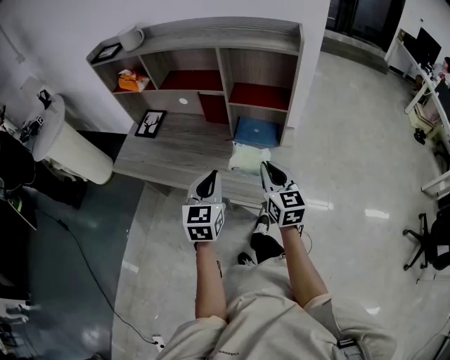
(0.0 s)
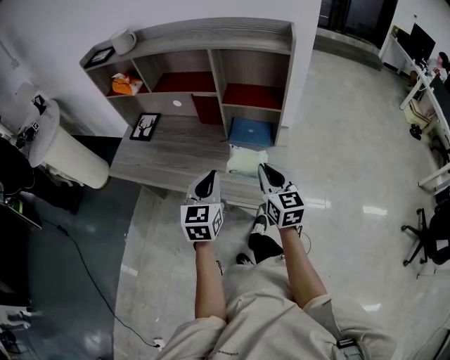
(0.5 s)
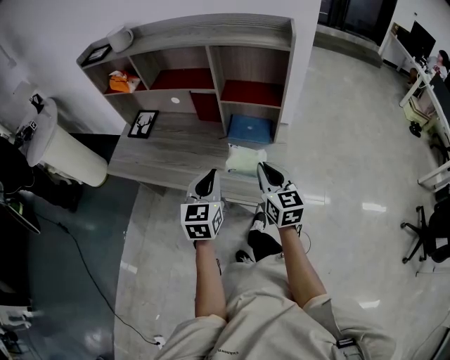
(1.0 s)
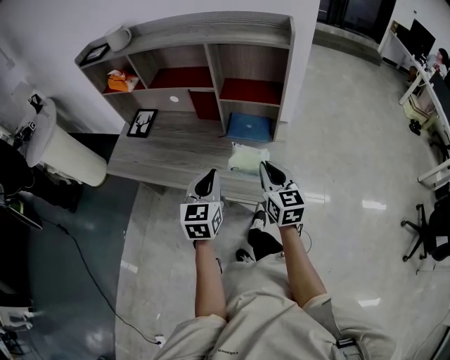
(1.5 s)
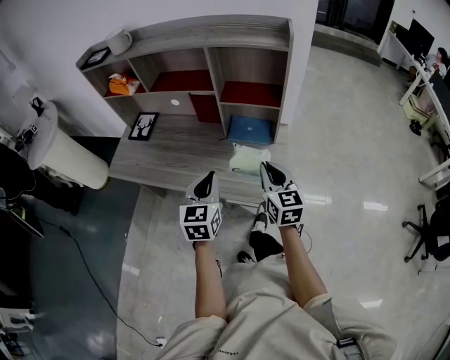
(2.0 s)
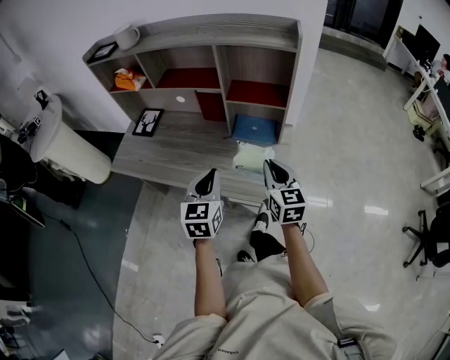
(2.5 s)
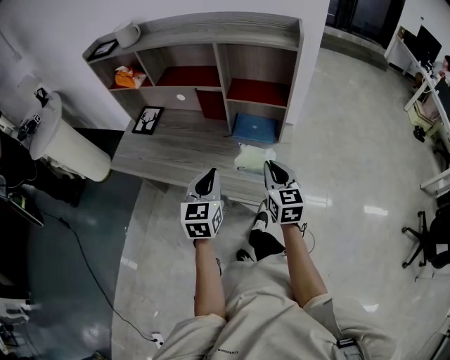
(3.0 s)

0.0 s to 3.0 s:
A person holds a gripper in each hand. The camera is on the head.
0.0 to 3.0 s: The grippers move only a little.

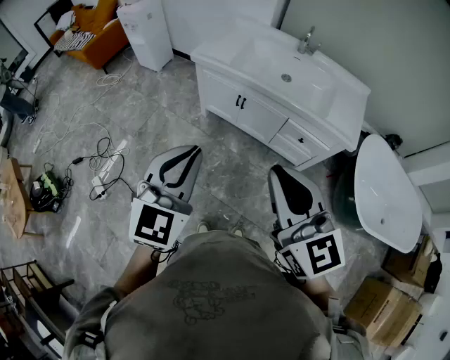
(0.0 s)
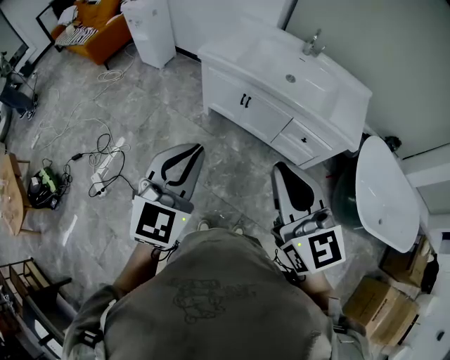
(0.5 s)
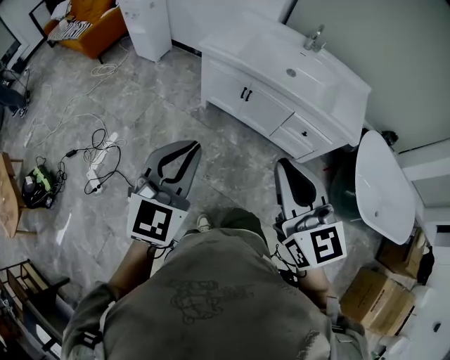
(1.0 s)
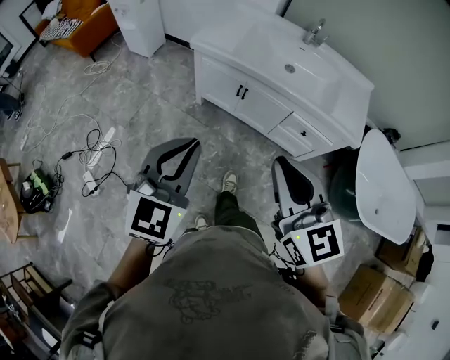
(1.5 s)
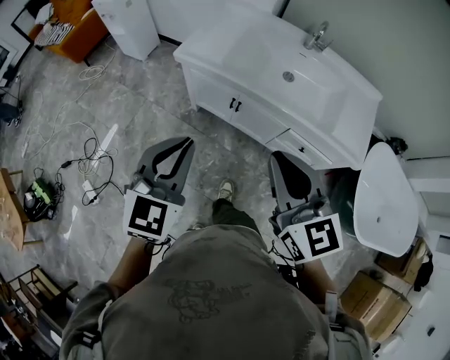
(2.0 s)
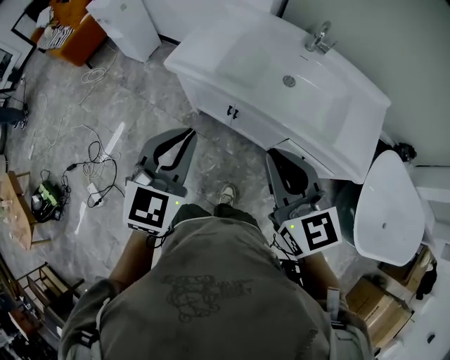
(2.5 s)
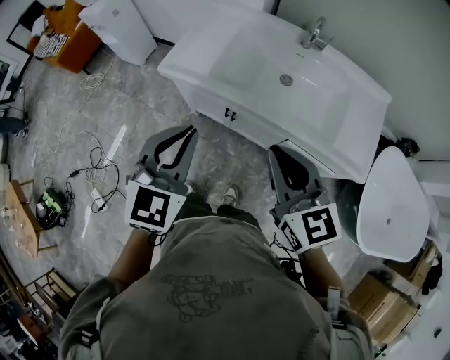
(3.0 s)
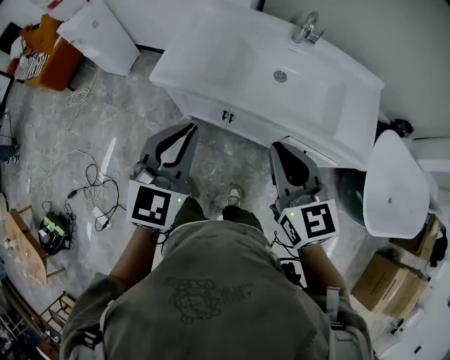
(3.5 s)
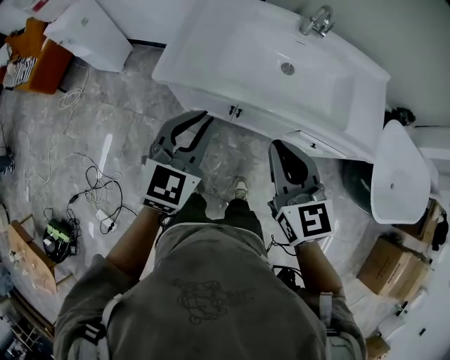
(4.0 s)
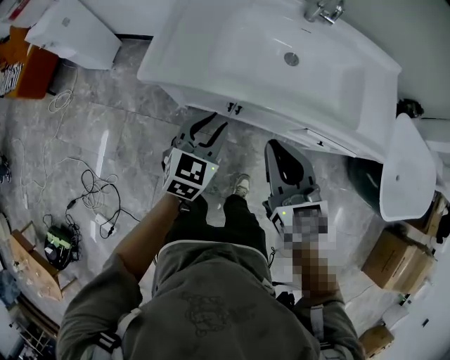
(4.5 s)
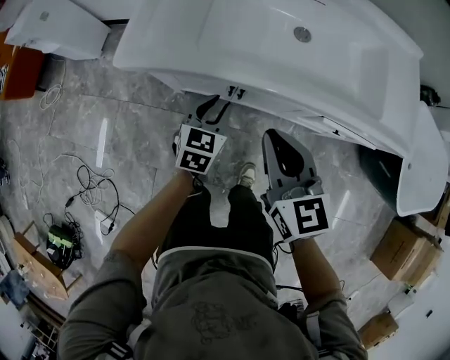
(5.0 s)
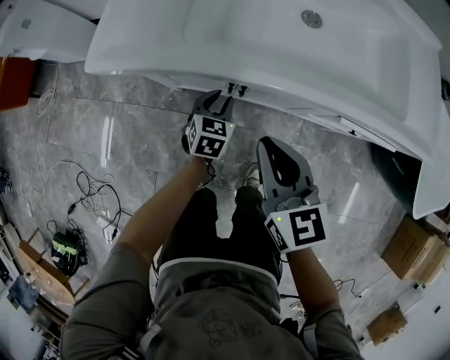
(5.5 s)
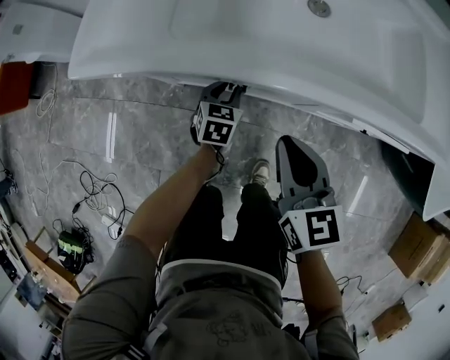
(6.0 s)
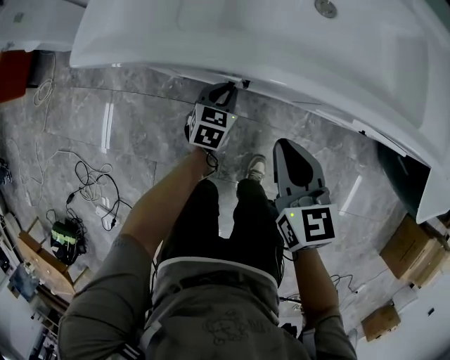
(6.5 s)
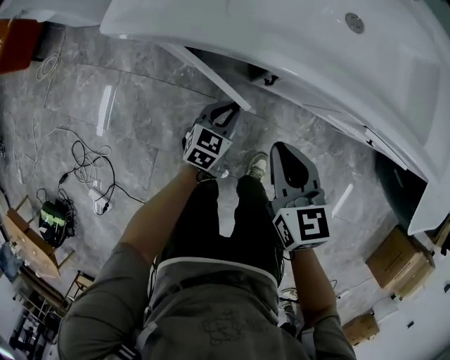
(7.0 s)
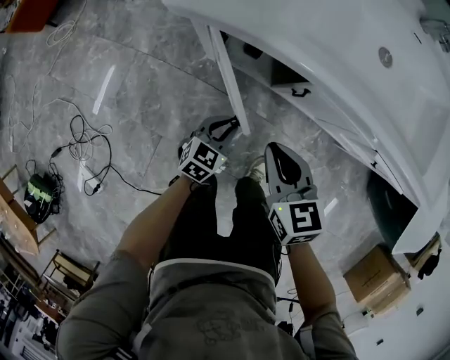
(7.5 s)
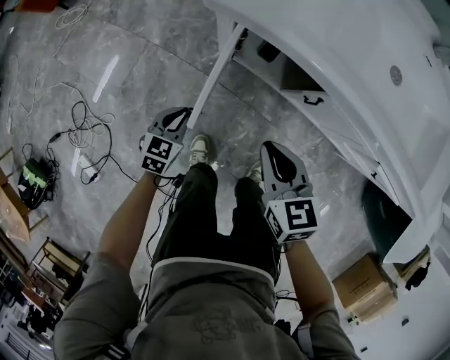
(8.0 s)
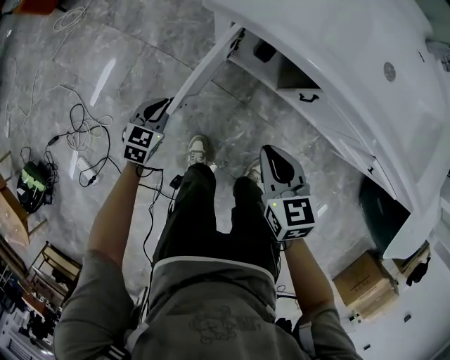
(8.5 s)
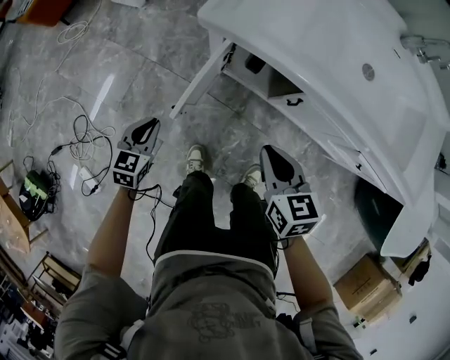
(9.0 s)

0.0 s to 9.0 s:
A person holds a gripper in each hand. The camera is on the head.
0.0 to 2.0 s: The grippers both shift forward by about 20 cm.
2.0 to 4.5 s: Both grippers travel together forward and downward, some 30 cm. The right gripper rotates approximately 20 degrees, while the left gripper swivels some 20 degrees, and opens its fingers.
4.5 to 7.0 s: The two grippers go some 30 cm downward.
7.0 to 9.0 s: The left gripper goes approximately 30 cm to the left, and swivels some 20 degrees, while the right gripper travels to the left by some 10 cm.

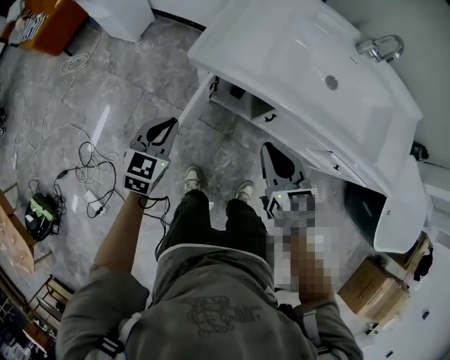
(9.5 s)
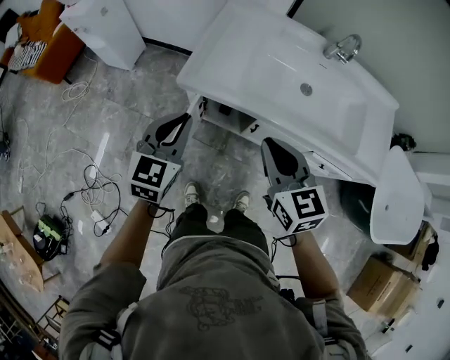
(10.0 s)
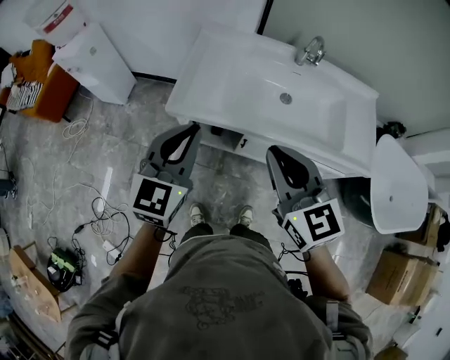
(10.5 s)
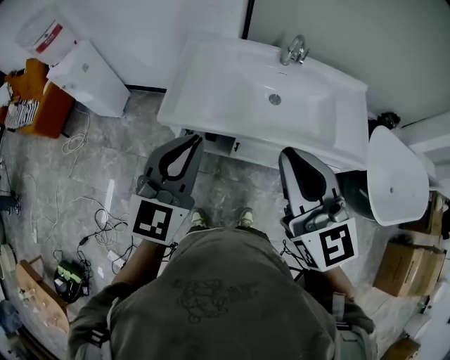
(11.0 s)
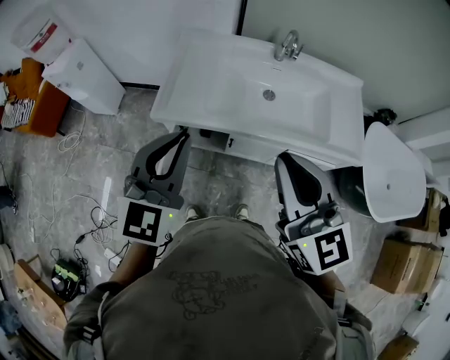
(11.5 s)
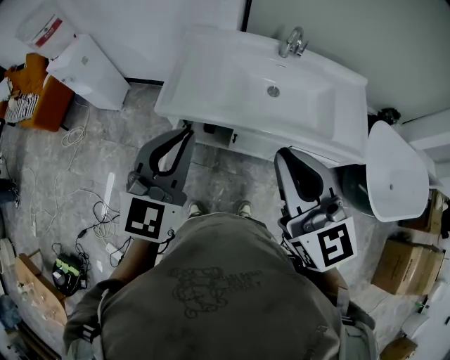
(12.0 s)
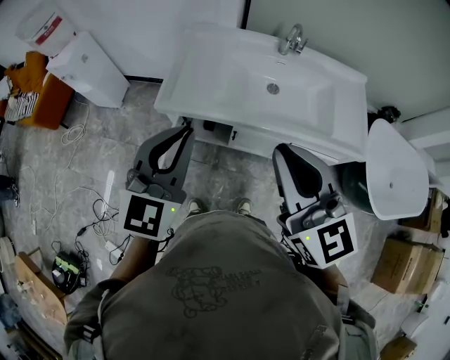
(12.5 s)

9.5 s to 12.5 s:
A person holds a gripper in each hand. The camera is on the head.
9.5 to 11.0 s: The right gripper shifts about 35 cm upward, and swivels some 30 degrees, while the left gripper goes roughly 40 cm upward and to the right, and changes its angle by roughly 30 degrees.
11.0 to 12.5 s: The grippers move only a little.

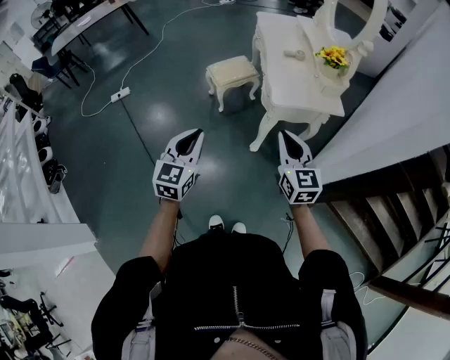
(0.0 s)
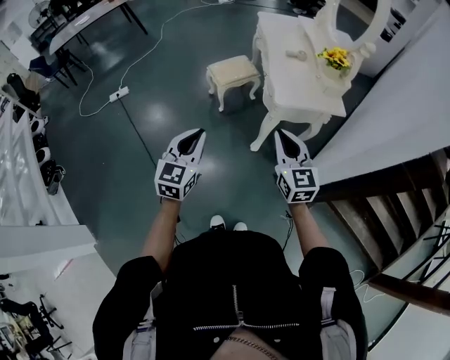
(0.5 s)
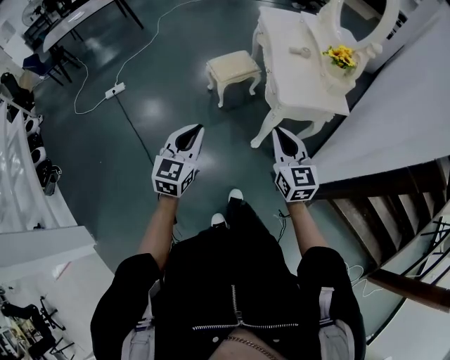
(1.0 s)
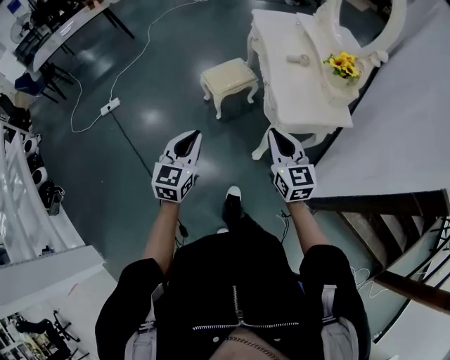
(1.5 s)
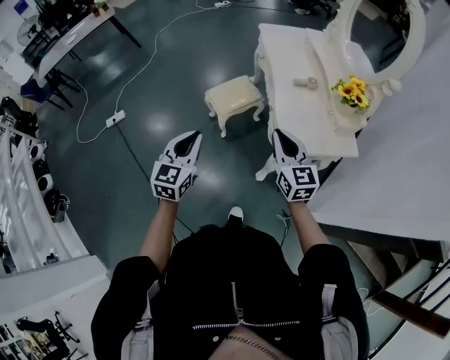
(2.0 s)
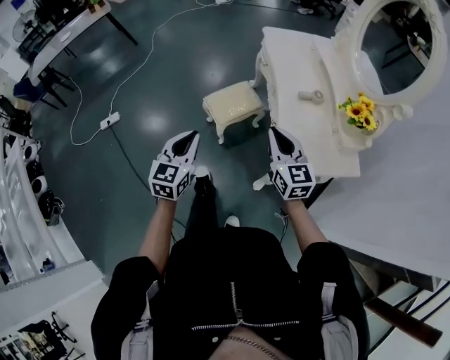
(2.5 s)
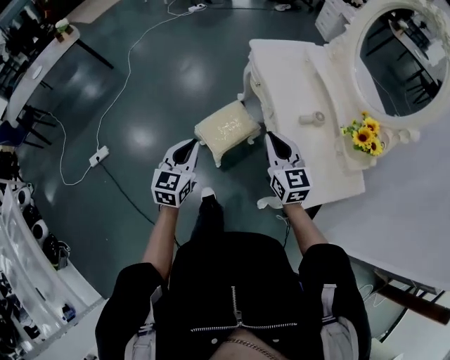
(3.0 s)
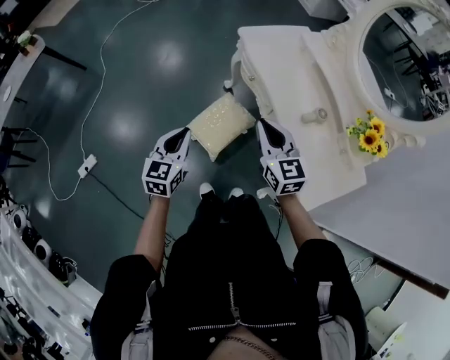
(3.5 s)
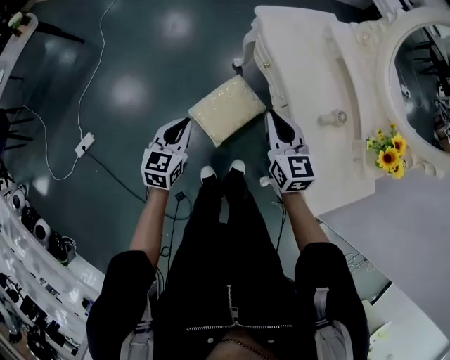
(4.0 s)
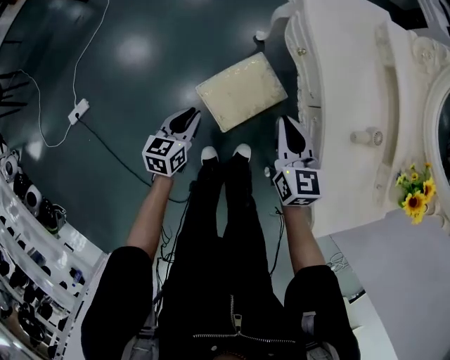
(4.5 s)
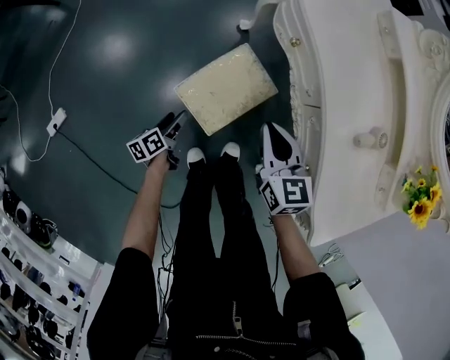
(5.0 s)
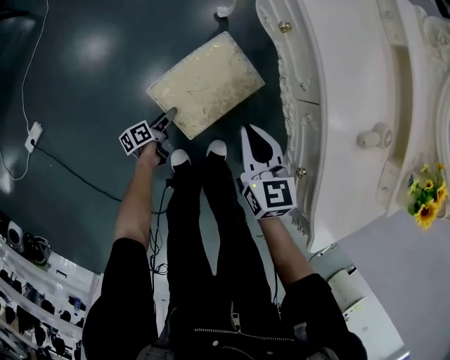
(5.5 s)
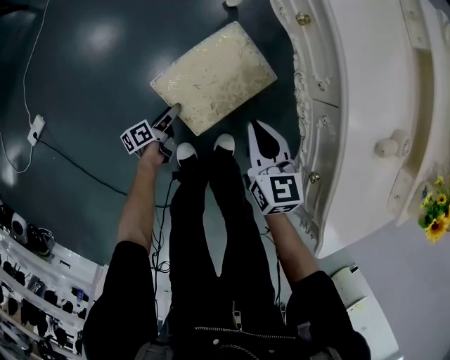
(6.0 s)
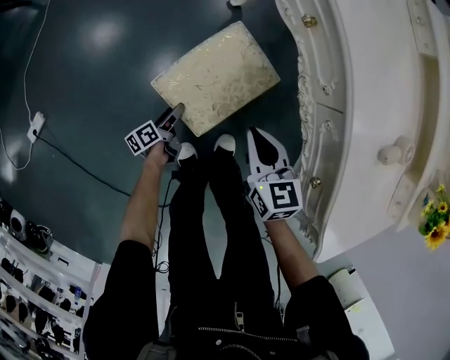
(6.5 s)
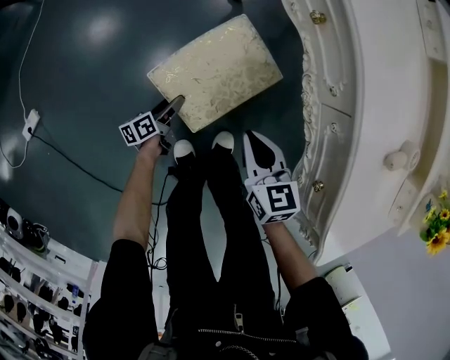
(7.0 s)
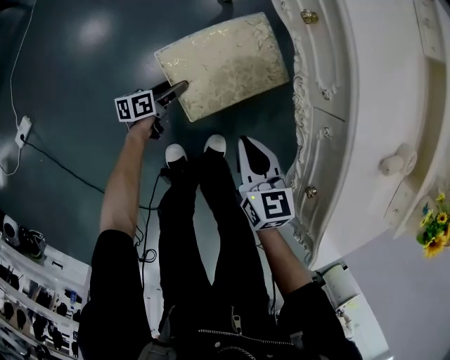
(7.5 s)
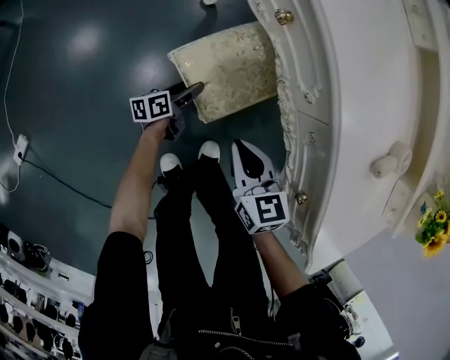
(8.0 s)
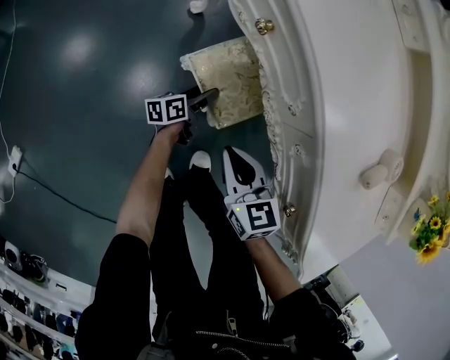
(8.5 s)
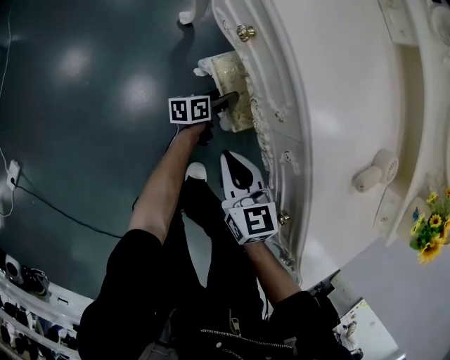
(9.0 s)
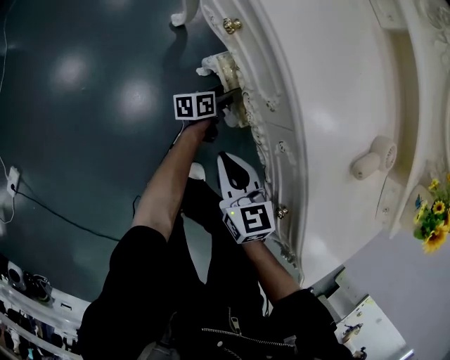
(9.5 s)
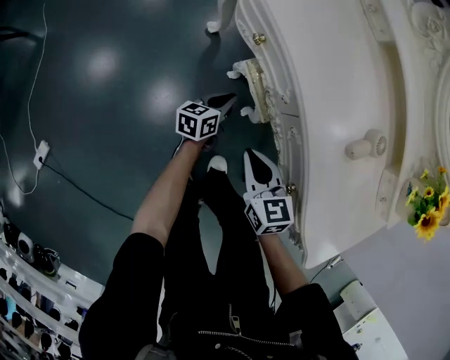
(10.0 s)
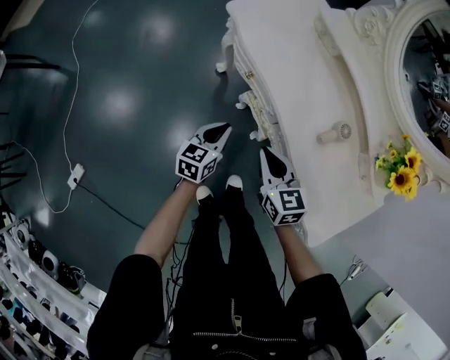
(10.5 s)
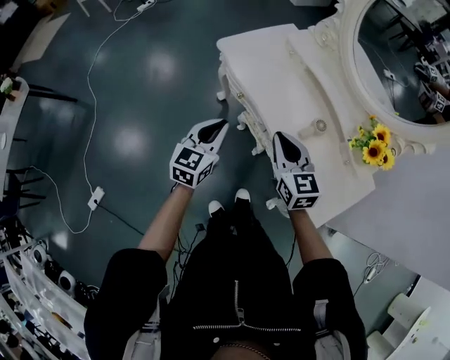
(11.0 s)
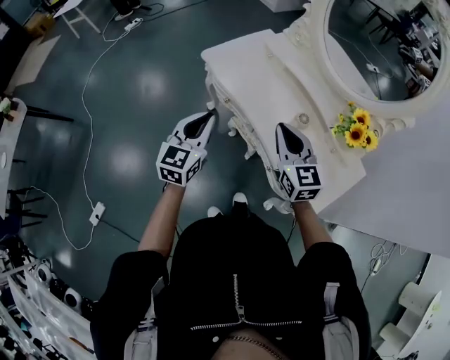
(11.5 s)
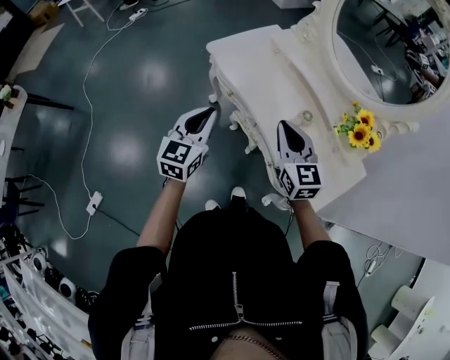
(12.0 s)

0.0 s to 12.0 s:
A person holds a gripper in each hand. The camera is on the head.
0.0 to 2.0 s: Both grippers move forward, about 25 cm.
2.0 to 4.0 s: The pair of grippers is taken forward, approximately 50 cm.
4.0 to 6.0 s: The right gripper moves downward, some 35 cm. Meanwhile the left gripper goes about 50 cm downward, rolls counterclockwise, seen from behind, by some 70 degrees, and opens up.
6.0 to 8.0 s: The left gripper travels forward and to the right by some 20 cm, and rotates approximately 30 degrees. The right gripper heads downward, covering about 5 cm.
8.0 to 10.0 s: The left gripper is displaced upward and to the right by approximately 15 cm, changes its angle by some 30 degrees, and closes; the right gripper shifts about 5 cm upward.
10.0 to 12.0 s: Both grippers travel together upward, roughly 50 cm. The left gripper rolls clockwise, seen from behind, by some 40 degrees, while the right gripper rotates roughly 30 degrees.
